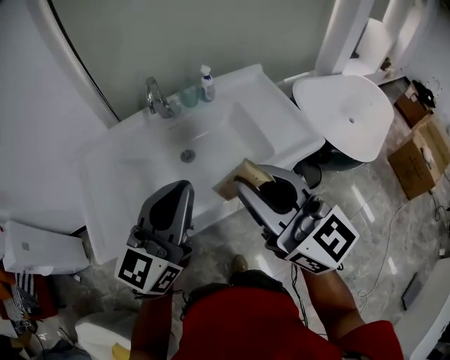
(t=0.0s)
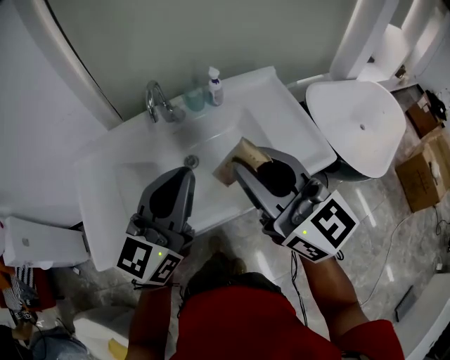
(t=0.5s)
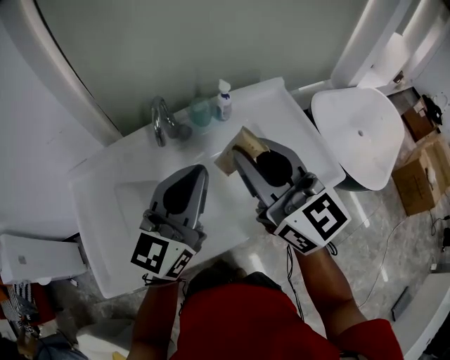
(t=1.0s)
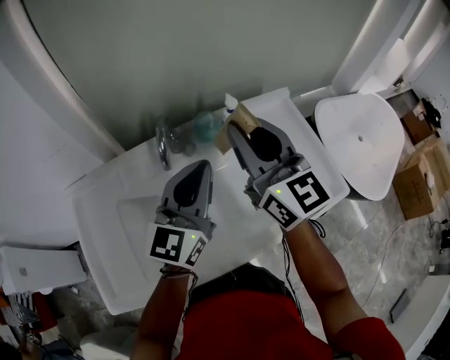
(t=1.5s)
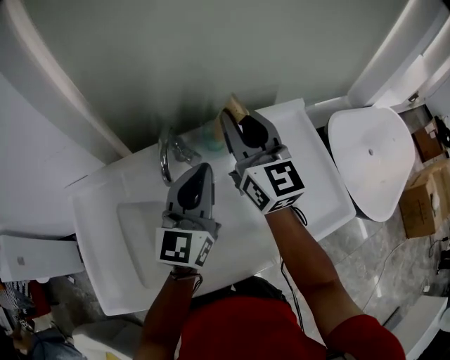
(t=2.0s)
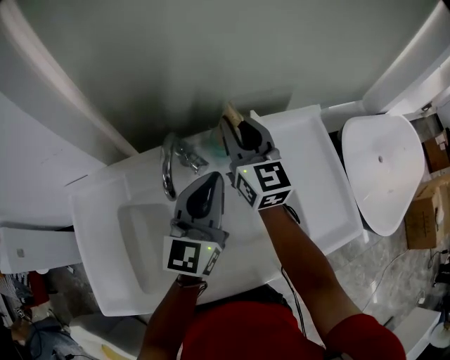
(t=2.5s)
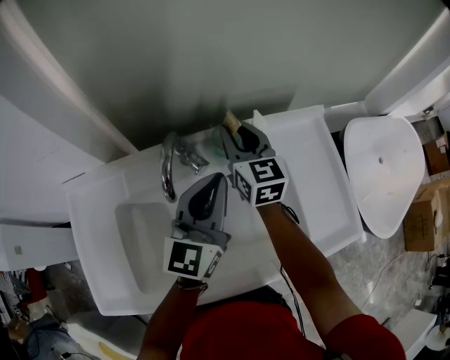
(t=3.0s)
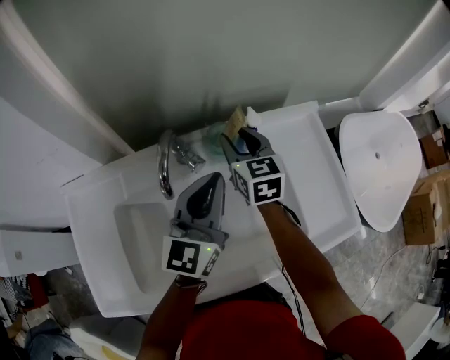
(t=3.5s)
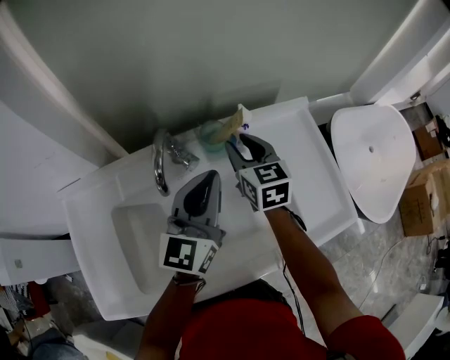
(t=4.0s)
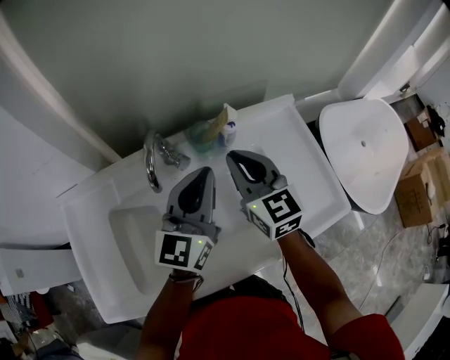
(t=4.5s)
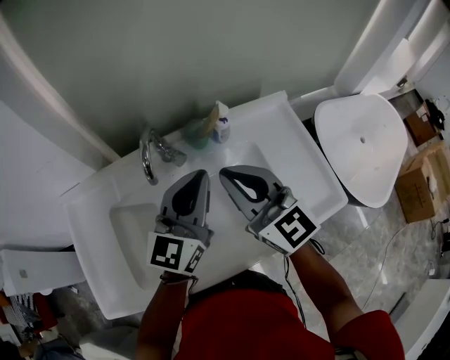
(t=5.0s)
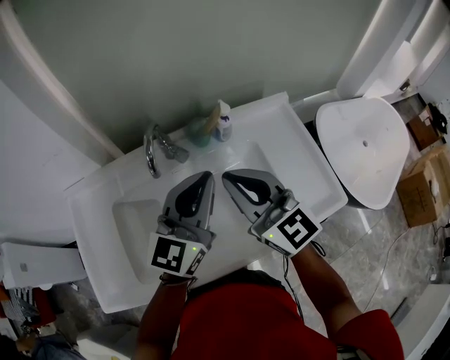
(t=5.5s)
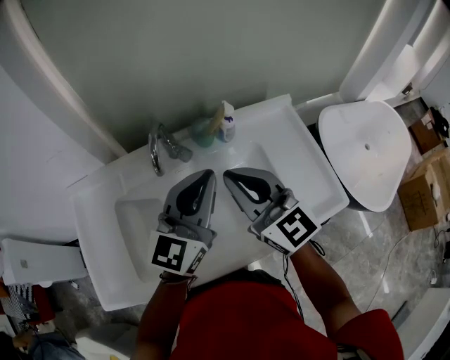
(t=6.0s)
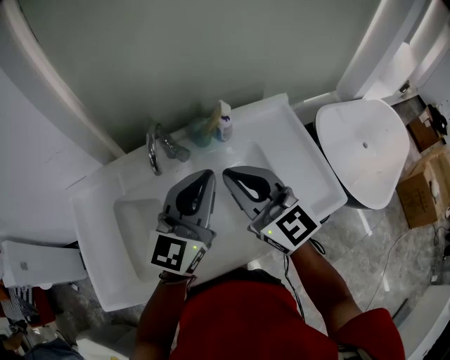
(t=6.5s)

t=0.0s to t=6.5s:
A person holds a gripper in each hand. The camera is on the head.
t=0.0s to t=2.0s: The two grippers go some 35 cm forward.
t=2.0s to t=4.5s: The right gripper travels downward by roughly 10 cm.
t=4.5s to t=6.5s: The right gripper moves backward and upward, about 10 cm. The left gripper is displaced backward by some 5 cm.

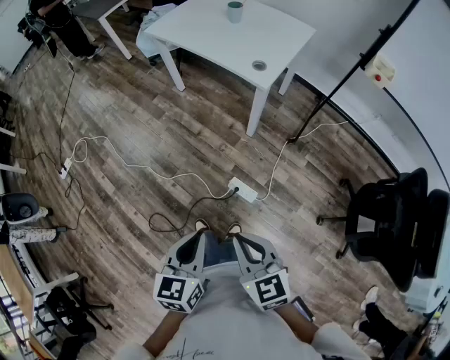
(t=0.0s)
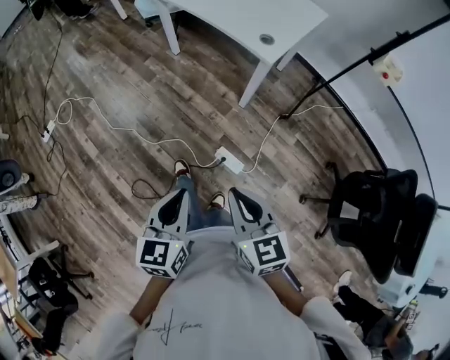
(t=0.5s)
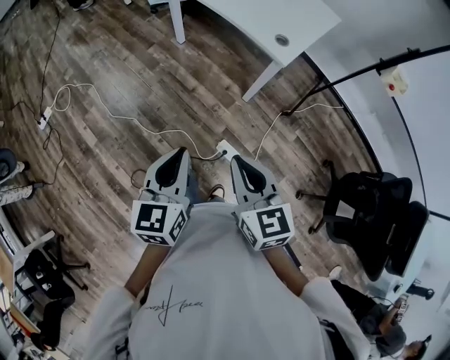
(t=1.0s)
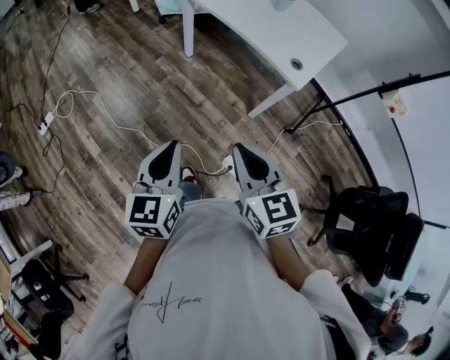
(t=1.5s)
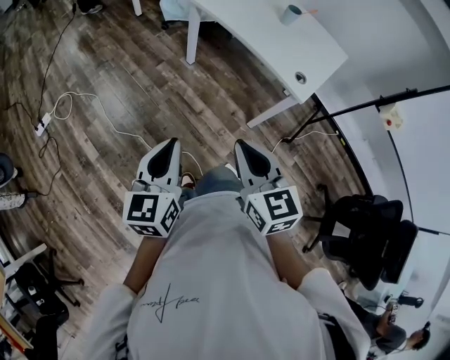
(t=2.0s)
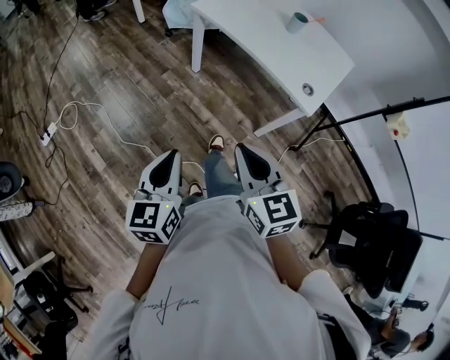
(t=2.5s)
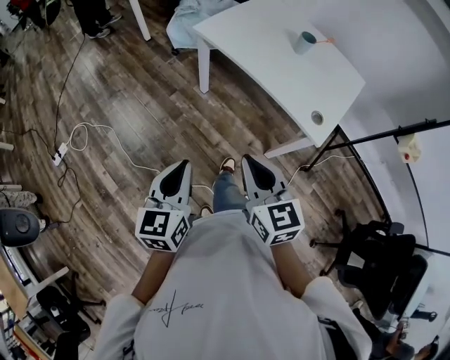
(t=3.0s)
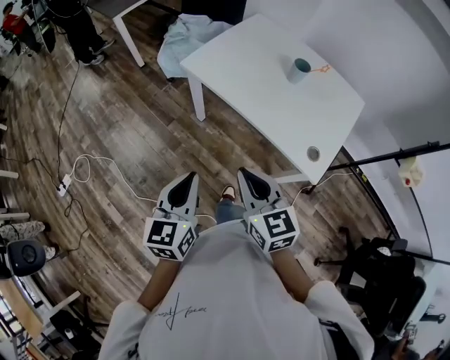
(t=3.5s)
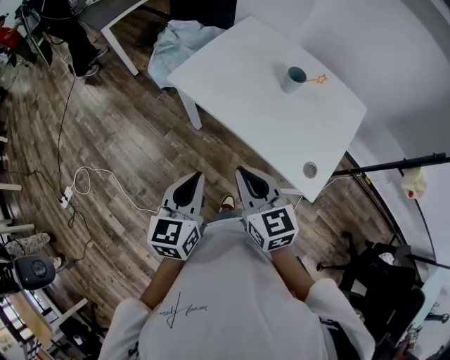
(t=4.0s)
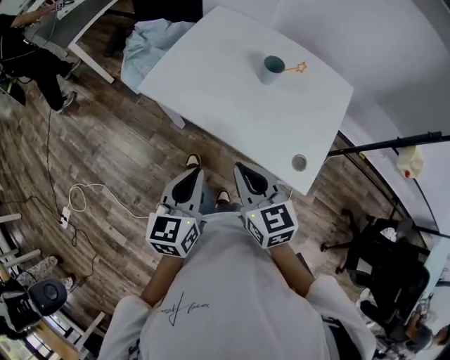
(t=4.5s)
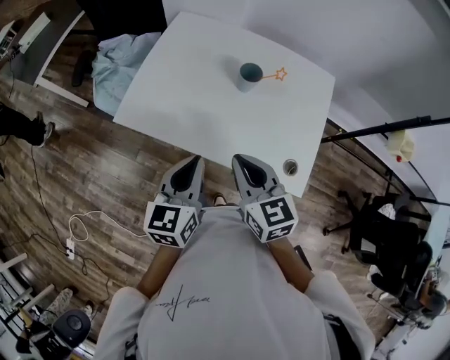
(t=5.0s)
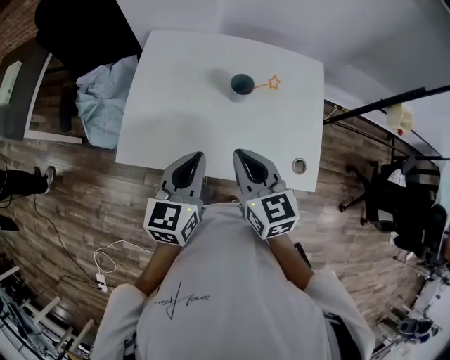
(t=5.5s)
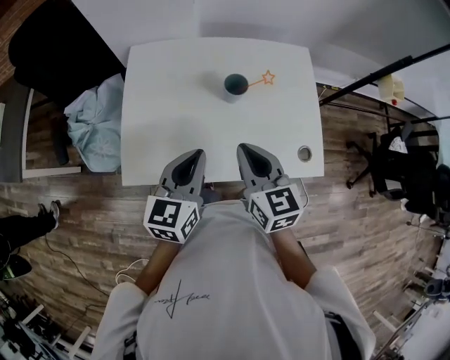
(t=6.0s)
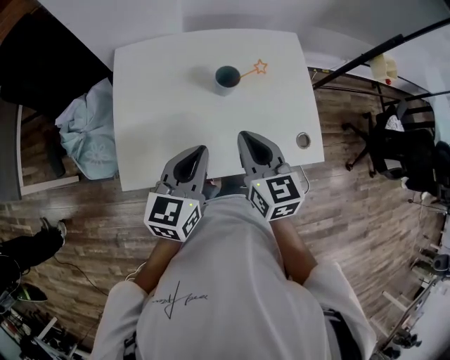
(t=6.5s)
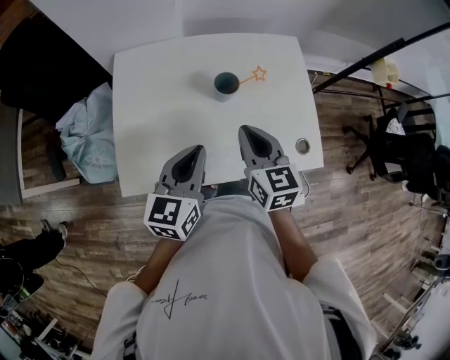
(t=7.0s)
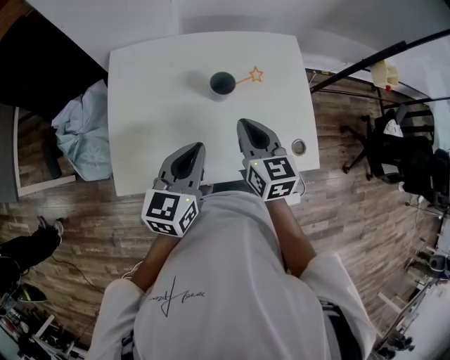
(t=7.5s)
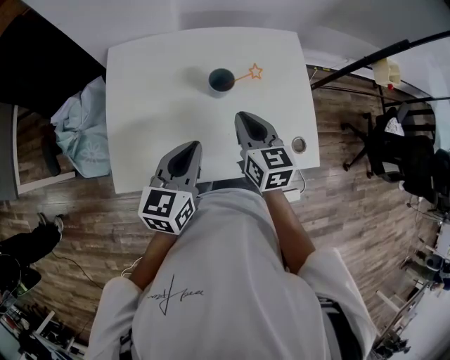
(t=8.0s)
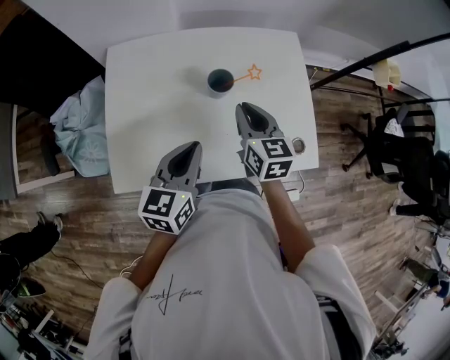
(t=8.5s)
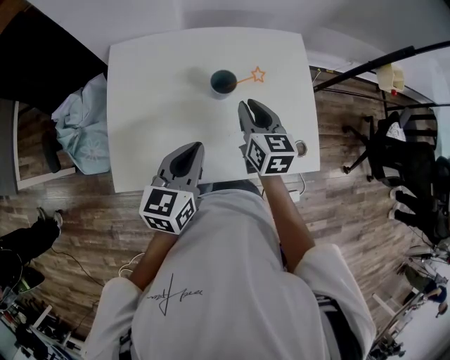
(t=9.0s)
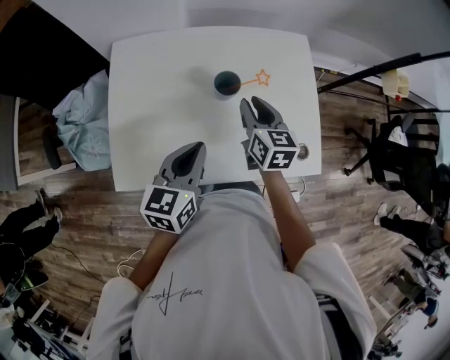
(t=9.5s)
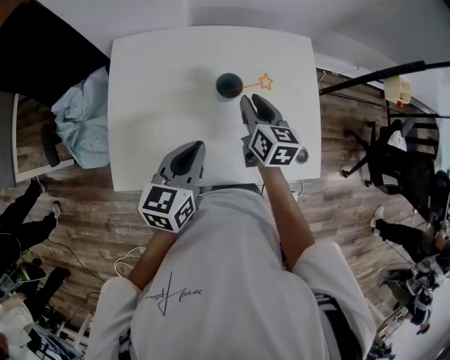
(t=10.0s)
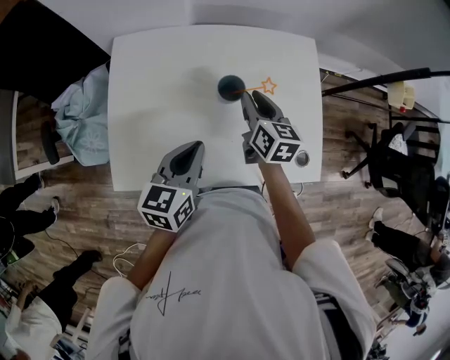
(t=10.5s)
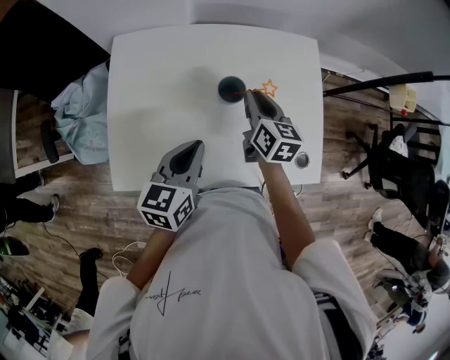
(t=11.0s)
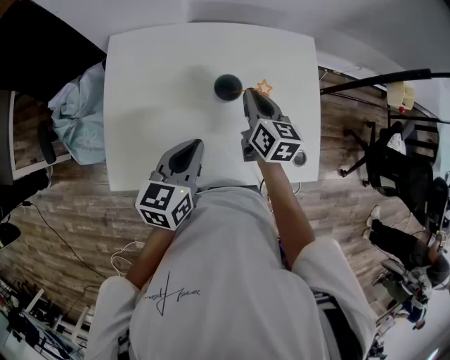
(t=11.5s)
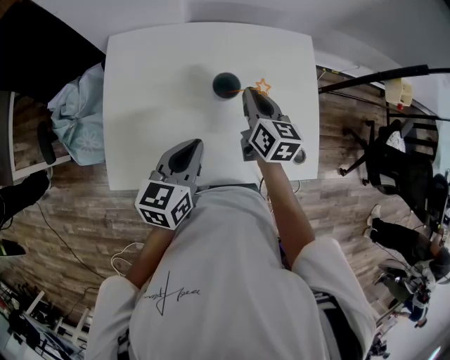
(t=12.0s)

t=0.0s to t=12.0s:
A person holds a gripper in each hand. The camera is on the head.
t=0.0s to t=2.0s: The two grippers go about 30 cm forward and to the left.
t=2.0s to t=4.0s: Both grippers move forward, some 35 cm.
t=4.0s to t=6.0s: The right gripper ends up roughly 25 cm from where it was, and rotates about 50 degrees, while the left gripper moves some 30 cm, and turns by about 50 degrees.
t=6.0s to t=8.0s: The right gripper heads forward and downward, covering about 10 cm.
t=8.0s to t=10.0s: The right gripper is displaced forward by about 10 cm, and opens up.
t=10.0s to t=12.0s: The right gripper closes up.

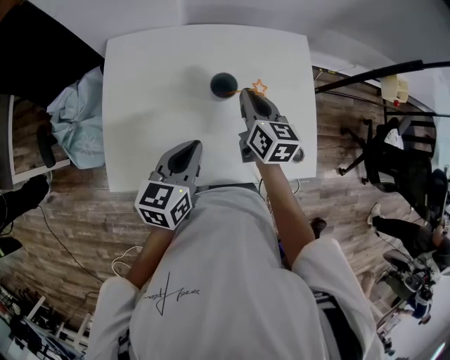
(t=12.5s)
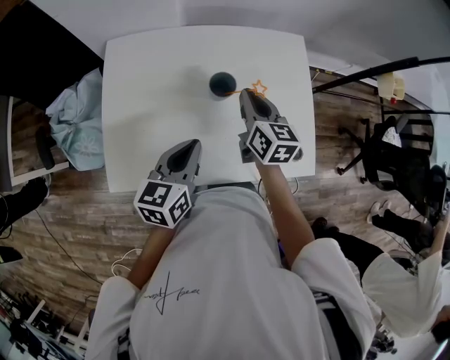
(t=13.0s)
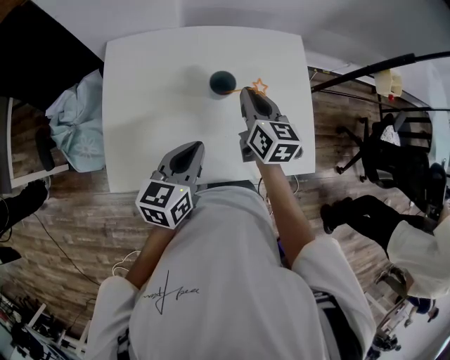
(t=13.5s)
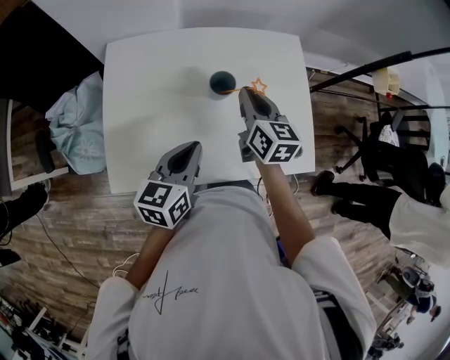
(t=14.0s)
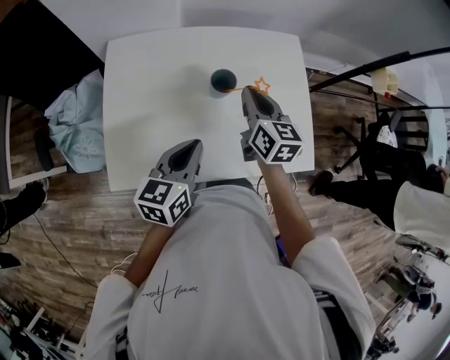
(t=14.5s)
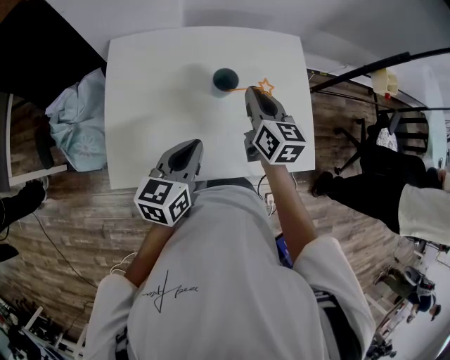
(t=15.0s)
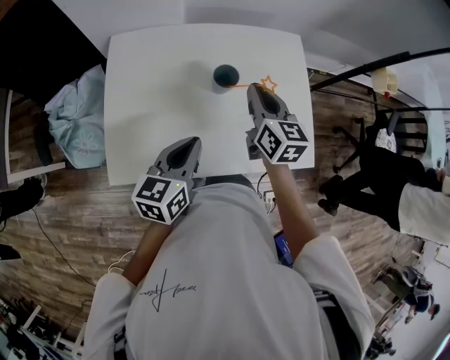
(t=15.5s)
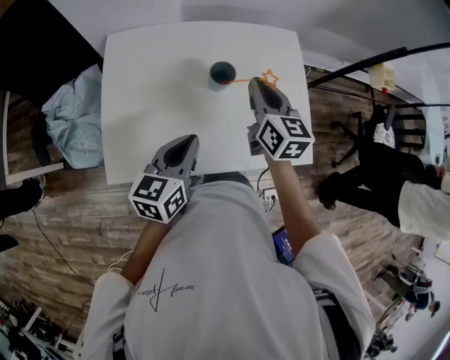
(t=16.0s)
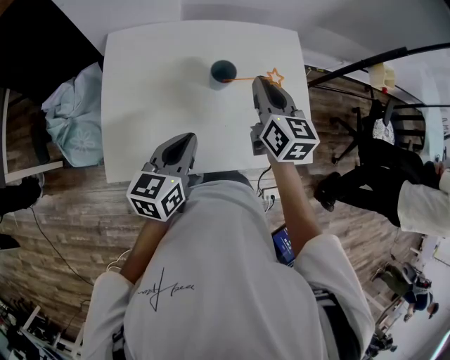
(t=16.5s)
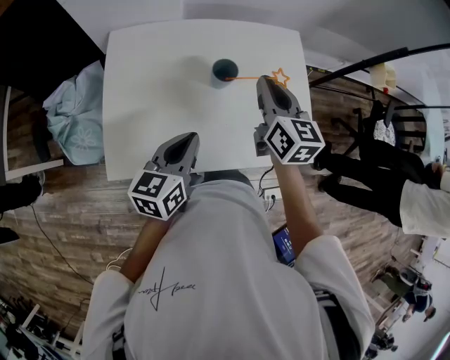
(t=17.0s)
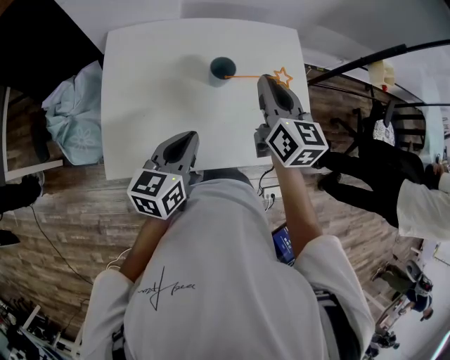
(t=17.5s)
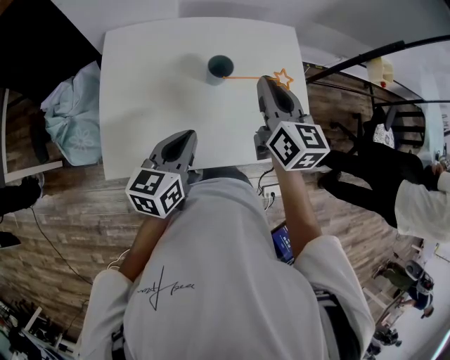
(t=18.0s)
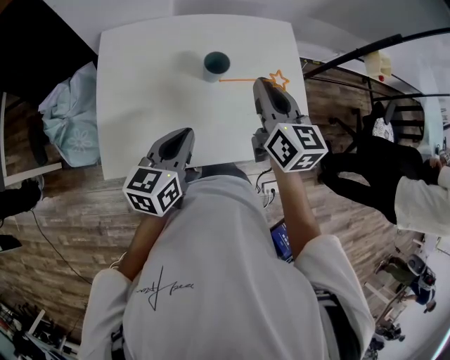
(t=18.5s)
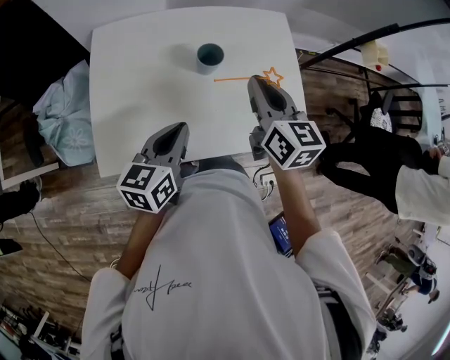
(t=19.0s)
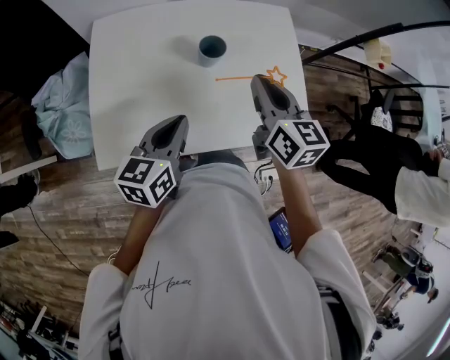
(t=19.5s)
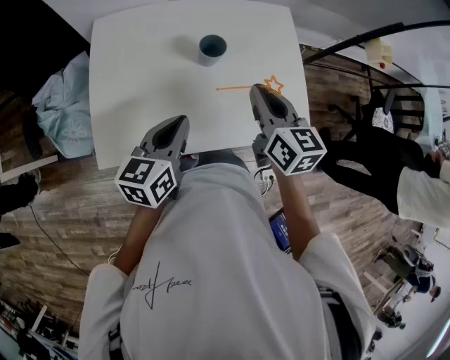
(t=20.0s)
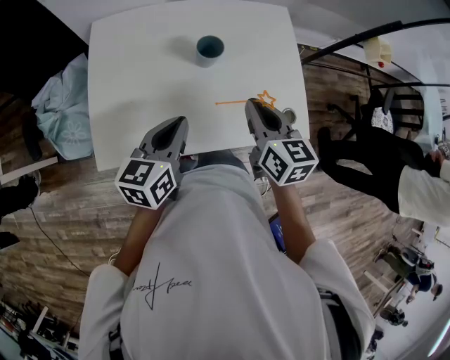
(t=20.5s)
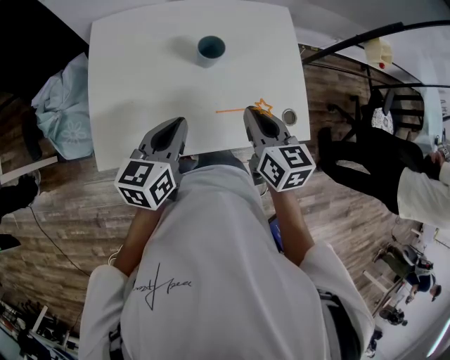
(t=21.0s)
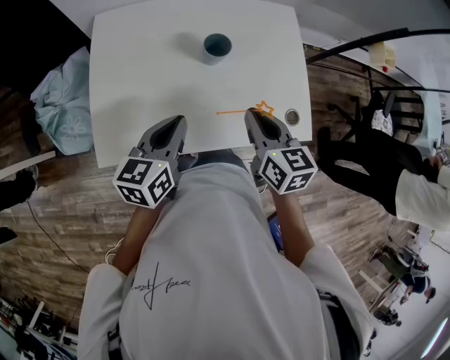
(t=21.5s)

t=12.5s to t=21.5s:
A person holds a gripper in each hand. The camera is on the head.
t=12.5s to t=14.5s: There are only small adjustments of the grippers.
t=14.5s to t=17.0s: The right gripper travels upward by approximately 5 cm.
t=17.0s to t=19.5s: The right gripper shifts roughly 5 cm backward.
t=19.5s to t=21.5s: The right gripper heads backward and downward, covering approximately 10 cm.
